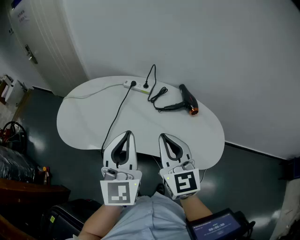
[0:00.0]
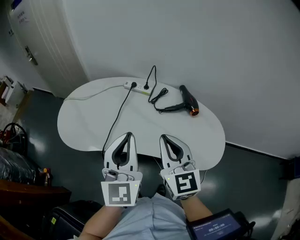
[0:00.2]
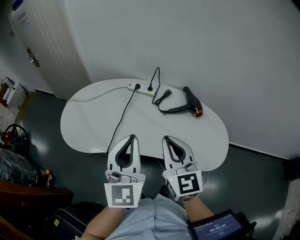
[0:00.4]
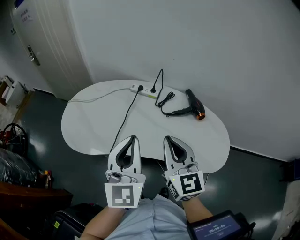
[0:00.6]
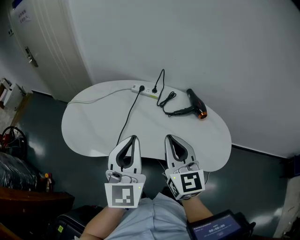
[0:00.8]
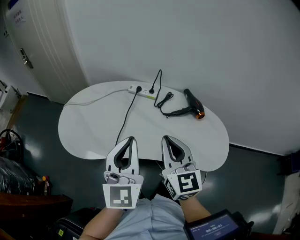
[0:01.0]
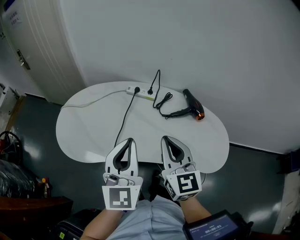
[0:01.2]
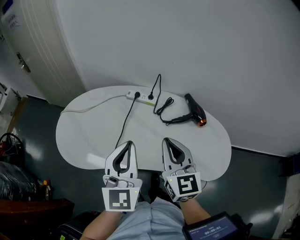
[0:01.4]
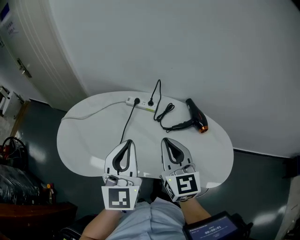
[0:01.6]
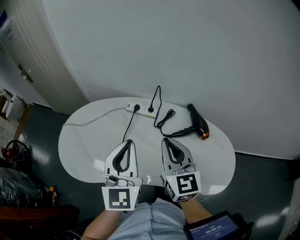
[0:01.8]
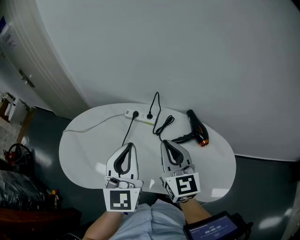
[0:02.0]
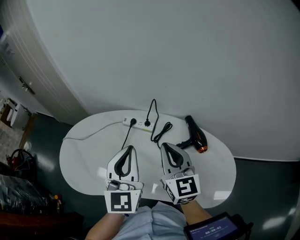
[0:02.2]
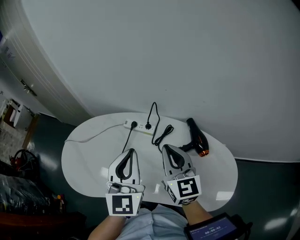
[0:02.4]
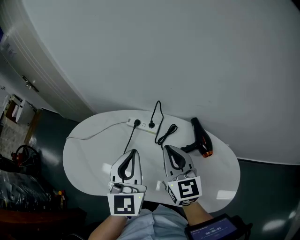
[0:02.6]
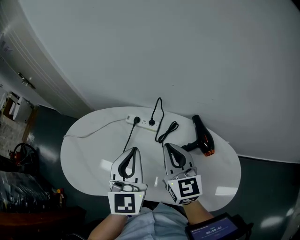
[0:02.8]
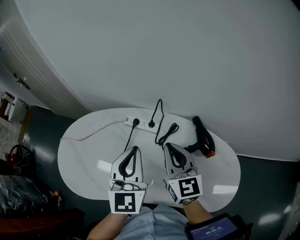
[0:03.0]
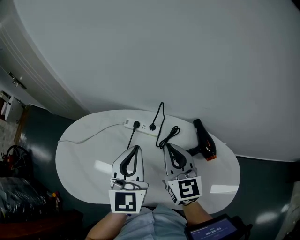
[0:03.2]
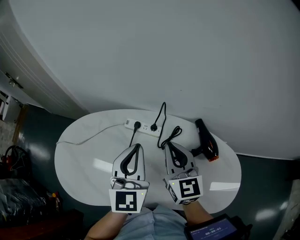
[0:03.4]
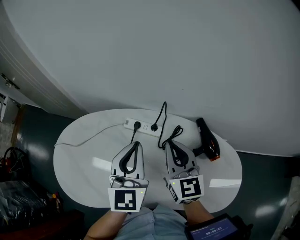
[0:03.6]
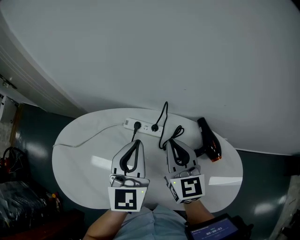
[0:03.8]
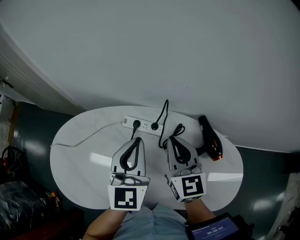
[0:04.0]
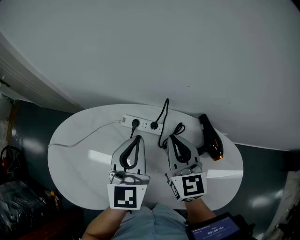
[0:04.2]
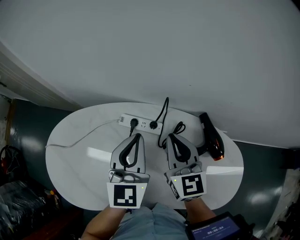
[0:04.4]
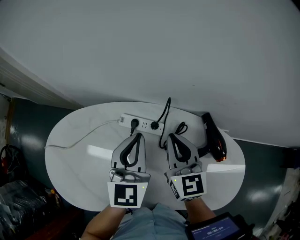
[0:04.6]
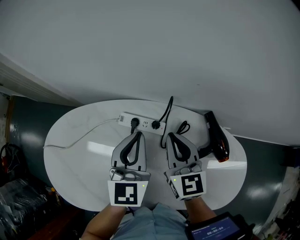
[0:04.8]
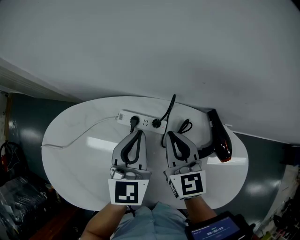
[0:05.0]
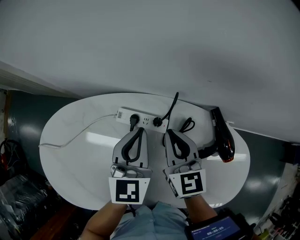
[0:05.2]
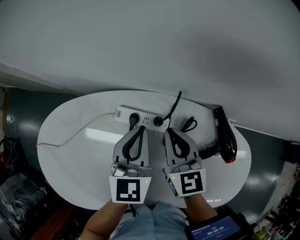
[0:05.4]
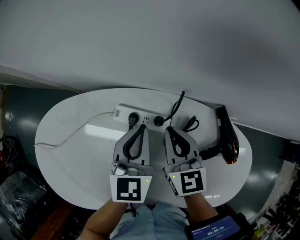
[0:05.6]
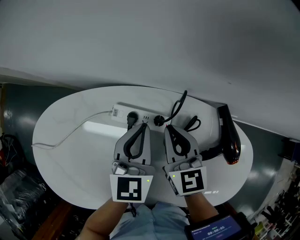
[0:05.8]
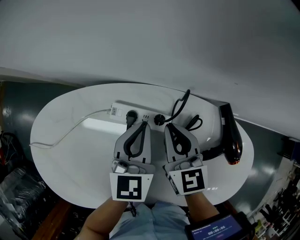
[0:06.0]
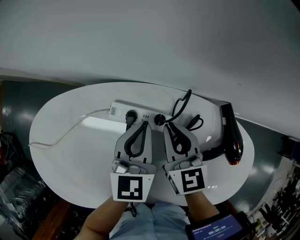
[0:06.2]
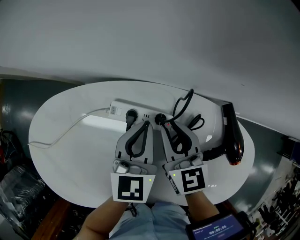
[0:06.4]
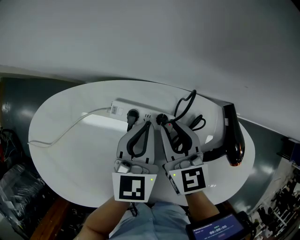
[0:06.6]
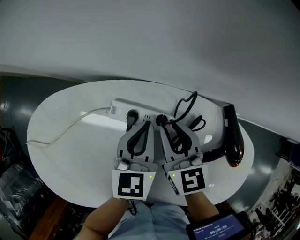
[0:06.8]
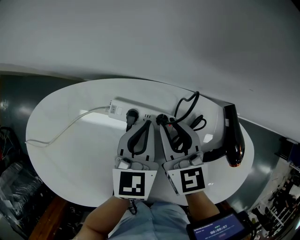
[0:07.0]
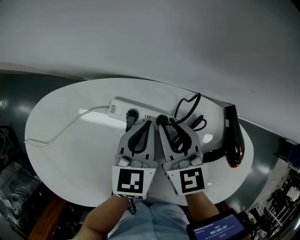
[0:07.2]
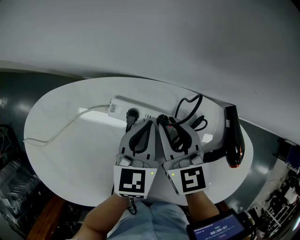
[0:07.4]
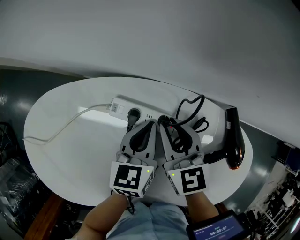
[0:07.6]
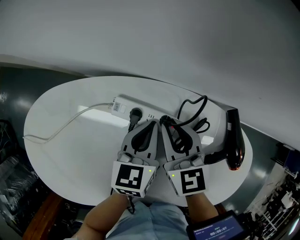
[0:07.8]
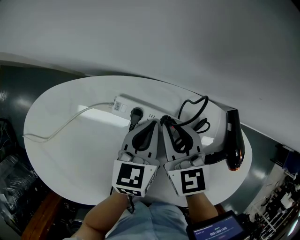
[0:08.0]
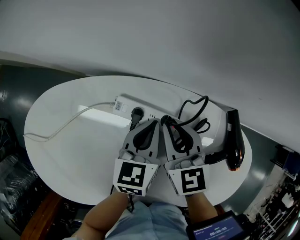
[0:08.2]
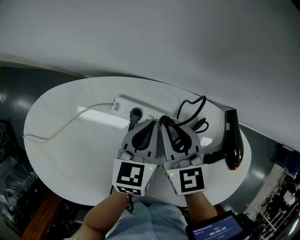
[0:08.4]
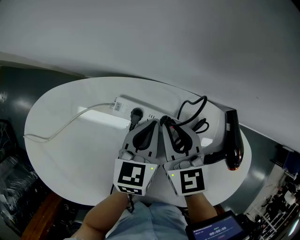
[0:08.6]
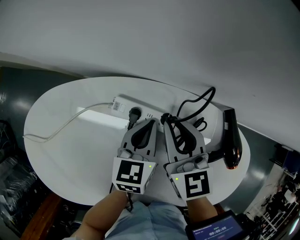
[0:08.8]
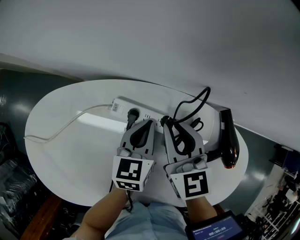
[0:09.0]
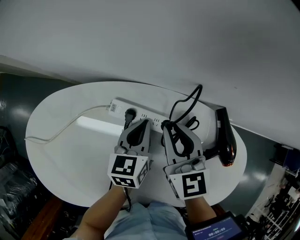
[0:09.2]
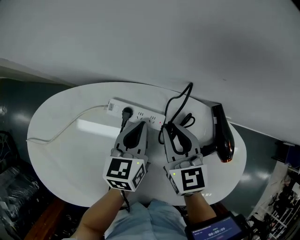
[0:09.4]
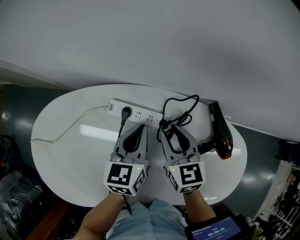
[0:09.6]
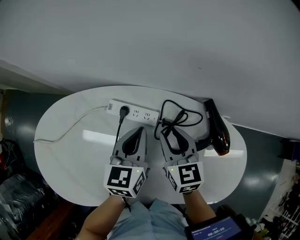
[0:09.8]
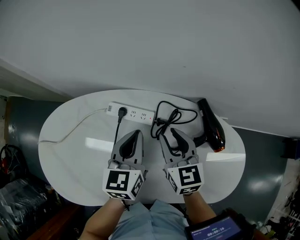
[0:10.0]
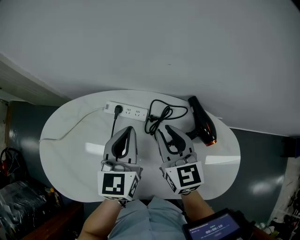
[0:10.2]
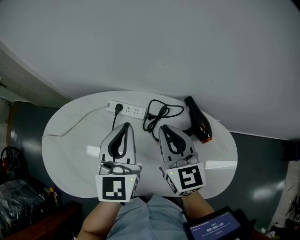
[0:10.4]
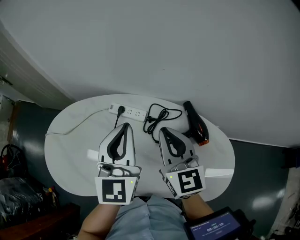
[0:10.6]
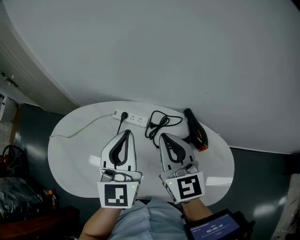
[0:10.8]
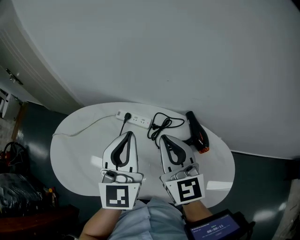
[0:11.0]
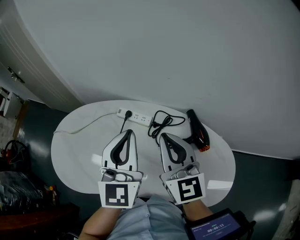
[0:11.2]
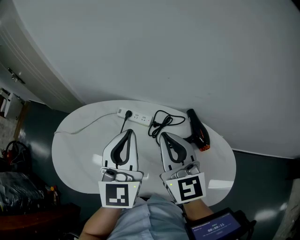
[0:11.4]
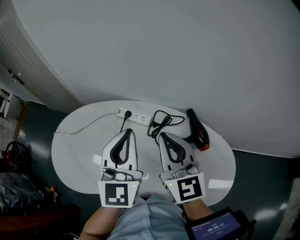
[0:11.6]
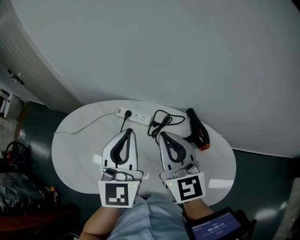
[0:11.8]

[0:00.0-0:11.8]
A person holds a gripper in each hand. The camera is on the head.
0:00.0 to 0:01.4: The grippers both shift forward by some 5 cm.
0:01.4 to 0:03.0: Both grippers move forward, approximately 15 cm.
0:03.0 to 0:04.4: The left gripper travels forward and downward by approximately 10 cm; the right gripper travels forward by about 10 cm.
0:04.4 to 0:06.0: The right gripper travels downward by roughly 10 cm; the left gripper shifts roughly 15 cm downward and forward.
0:06.0 to 0:07.4: The right gripper opens its fingers, while the left gripper shifts by some 5 cm.
0:07.4 to 0:08.8: The grippers move only a little.
0:08.8 to 0:10.4: The left gripper shifts roughly 25 cm upward and backward, and rotates some 30 degrees. The right gripper travels upward, backward and to the right by approximately 20 cm.
0:10.4 to 0:11.8: The left gripper is displaced upward and backward by about 10 cm, while the right gripper is displaced upward by about 10 cm.

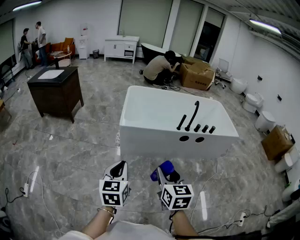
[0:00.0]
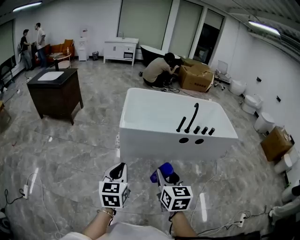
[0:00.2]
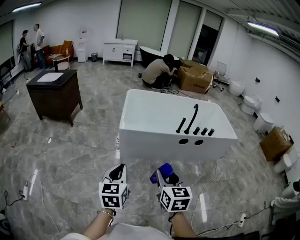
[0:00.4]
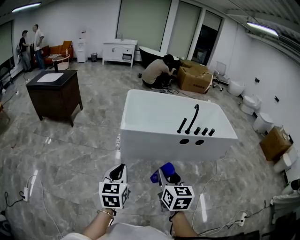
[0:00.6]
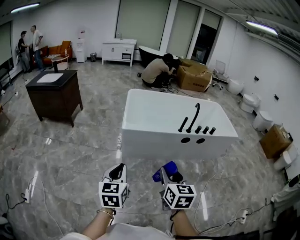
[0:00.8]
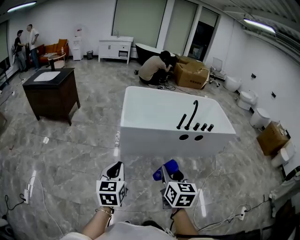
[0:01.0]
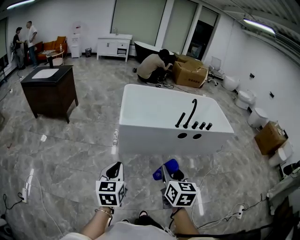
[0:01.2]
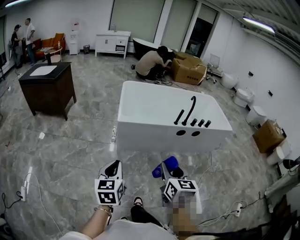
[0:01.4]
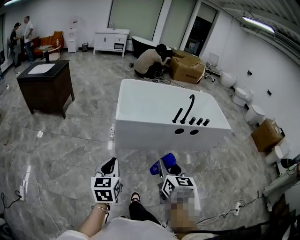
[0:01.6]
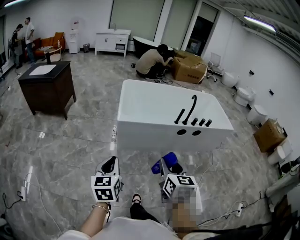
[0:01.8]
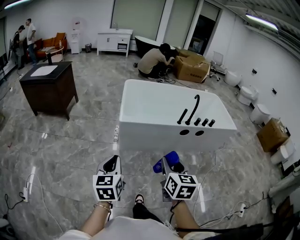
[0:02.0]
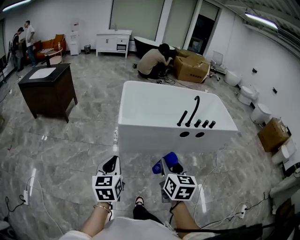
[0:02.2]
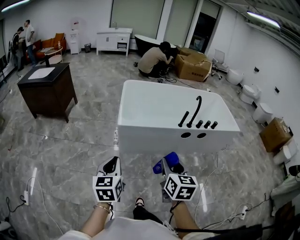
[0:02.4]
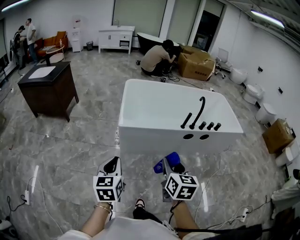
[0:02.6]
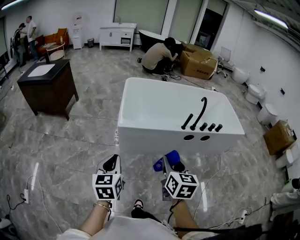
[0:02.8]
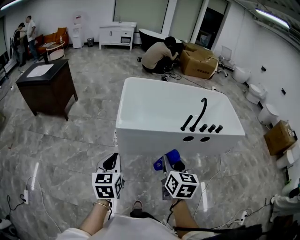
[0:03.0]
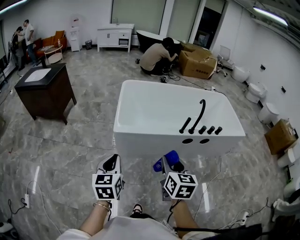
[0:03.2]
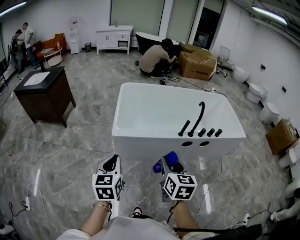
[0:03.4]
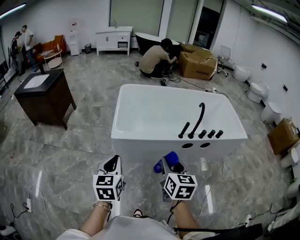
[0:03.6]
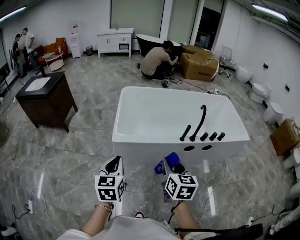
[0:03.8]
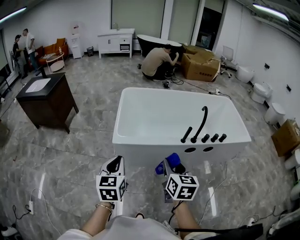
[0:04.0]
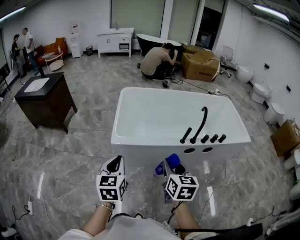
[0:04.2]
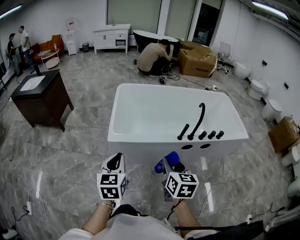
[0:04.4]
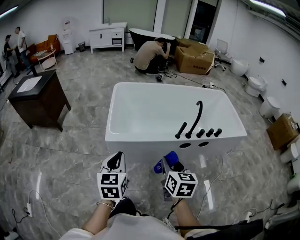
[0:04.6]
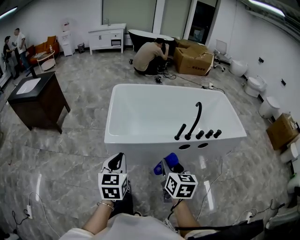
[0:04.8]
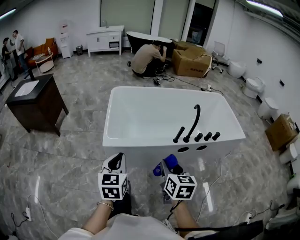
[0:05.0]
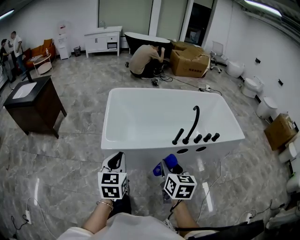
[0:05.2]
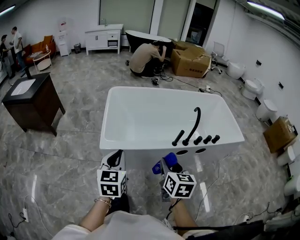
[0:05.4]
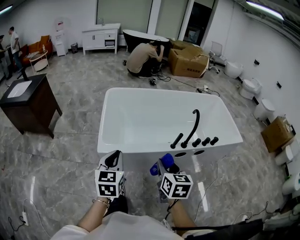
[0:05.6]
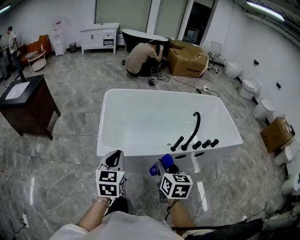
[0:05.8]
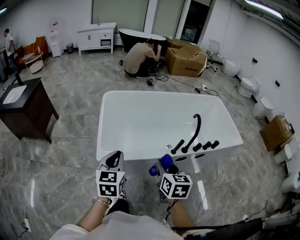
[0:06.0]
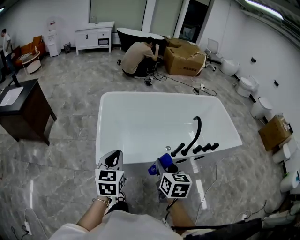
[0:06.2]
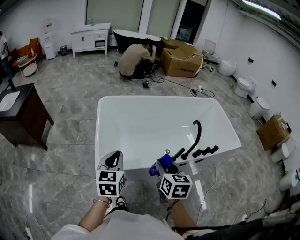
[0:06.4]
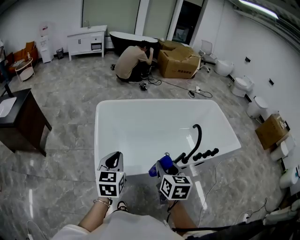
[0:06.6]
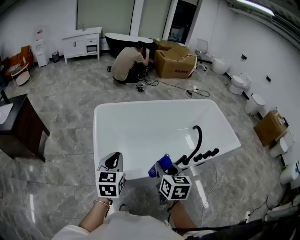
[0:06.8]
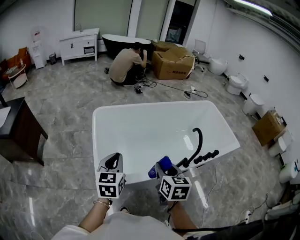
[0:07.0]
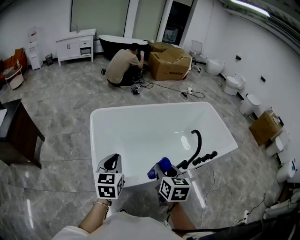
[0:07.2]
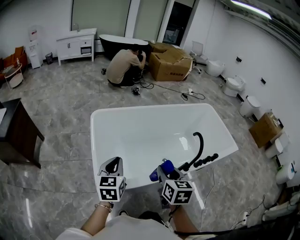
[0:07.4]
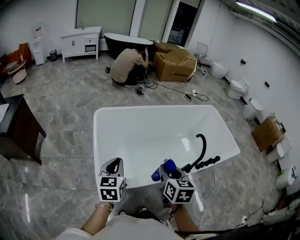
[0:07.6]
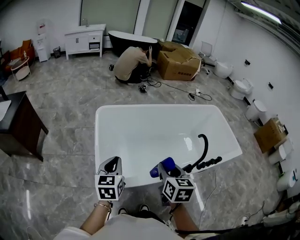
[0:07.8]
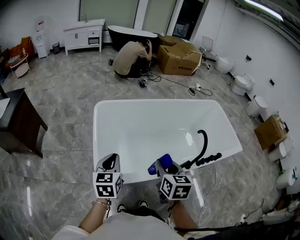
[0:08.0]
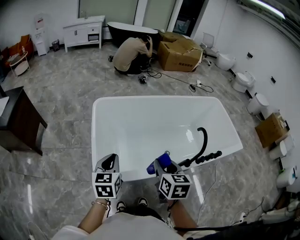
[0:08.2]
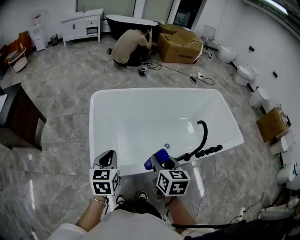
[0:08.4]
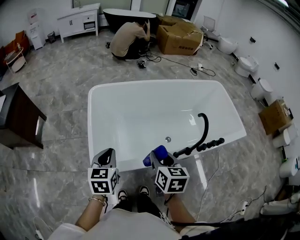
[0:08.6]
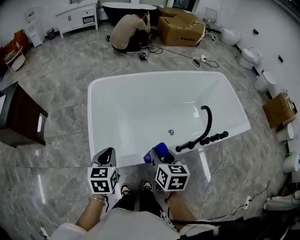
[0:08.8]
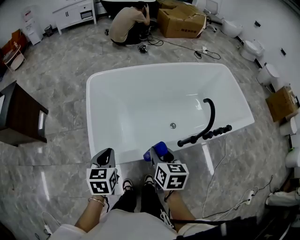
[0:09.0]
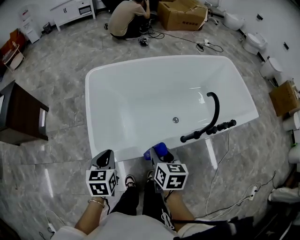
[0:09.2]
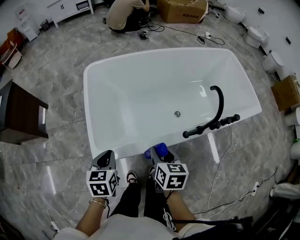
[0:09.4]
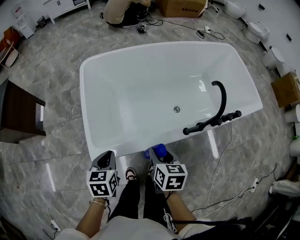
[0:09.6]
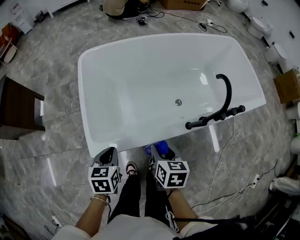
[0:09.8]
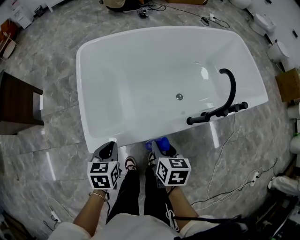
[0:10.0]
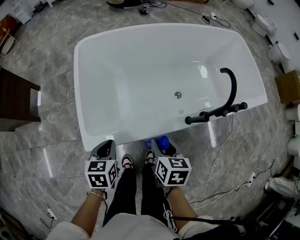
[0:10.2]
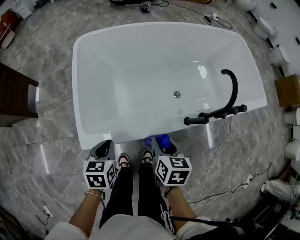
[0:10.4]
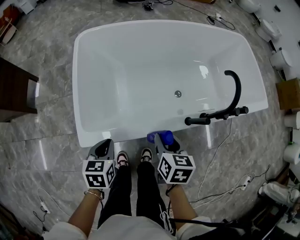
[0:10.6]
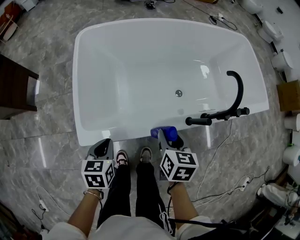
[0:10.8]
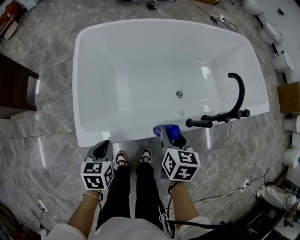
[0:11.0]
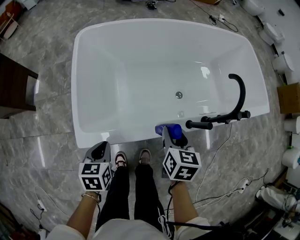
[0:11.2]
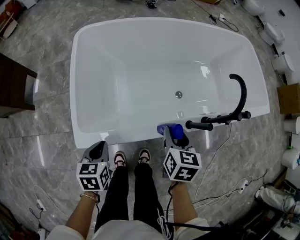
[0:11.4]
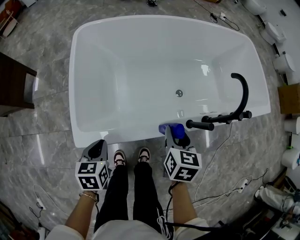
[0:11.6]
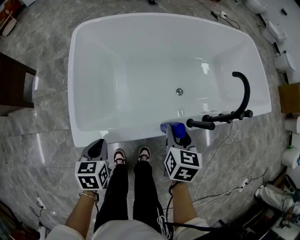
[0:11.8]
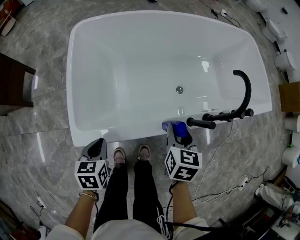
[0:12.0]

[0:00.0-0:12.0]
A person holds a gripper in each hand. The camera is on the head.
0:00.0 to 0:01.6: The left gripper is displaced to the left by approximately 5 cm.
0:01.6 to 0:03.0: Both grippers move forward, about 15 cm.
0:03.0 to 0:04.4: The two grippers go roughly 10 cm forward and to the right.
0:04.4 to 0:06.0: The two grippers go roughly 15 cm forward.
0:06.0 to 0:07.6: Both grippers travel together forward, roughly 15 cm.
0:07.6 to 0:09.0: Both grippers travel together downward, about 10 cm.
0:09.0 to 0:10.4: Both grippers travel together downward, approximately 10 cm.
0:10.4 to 0:12.0: The right gripper travels forward and to the right by approximately 10 cm.
